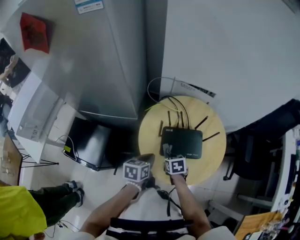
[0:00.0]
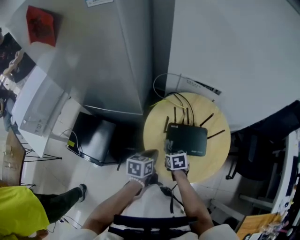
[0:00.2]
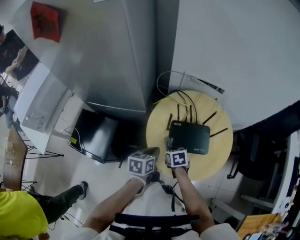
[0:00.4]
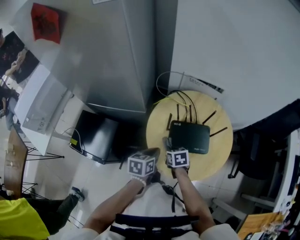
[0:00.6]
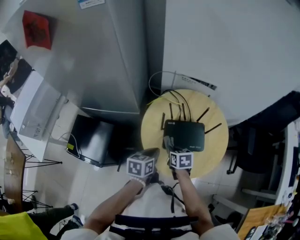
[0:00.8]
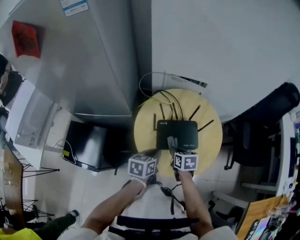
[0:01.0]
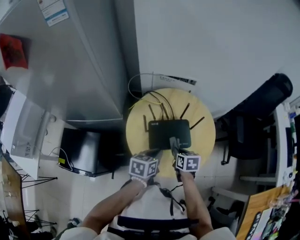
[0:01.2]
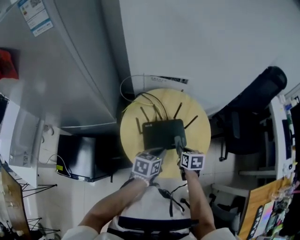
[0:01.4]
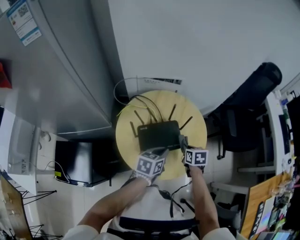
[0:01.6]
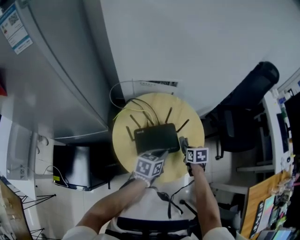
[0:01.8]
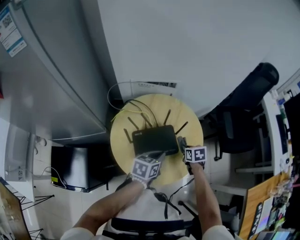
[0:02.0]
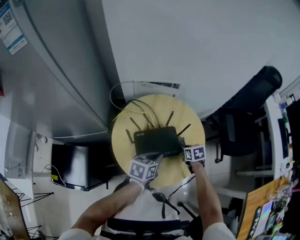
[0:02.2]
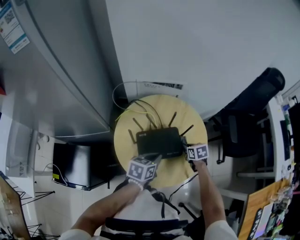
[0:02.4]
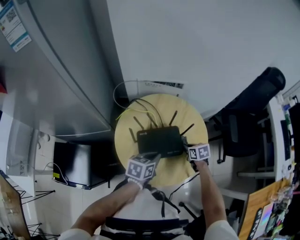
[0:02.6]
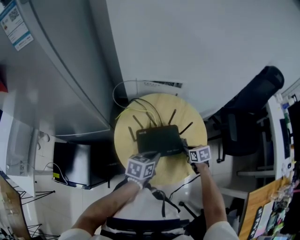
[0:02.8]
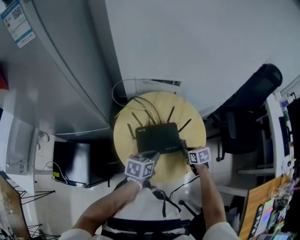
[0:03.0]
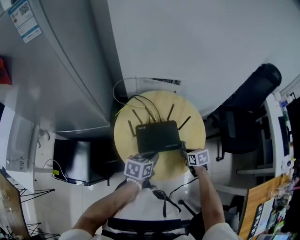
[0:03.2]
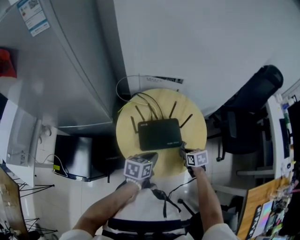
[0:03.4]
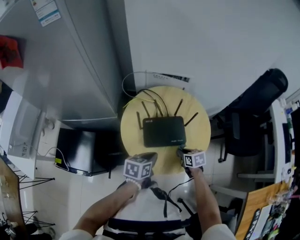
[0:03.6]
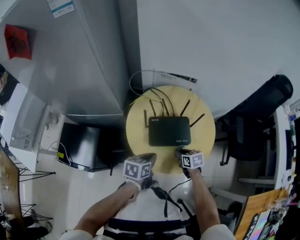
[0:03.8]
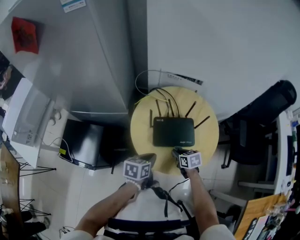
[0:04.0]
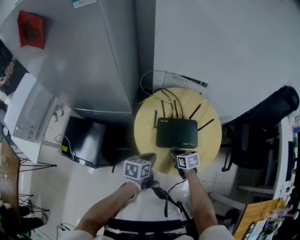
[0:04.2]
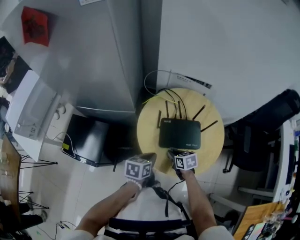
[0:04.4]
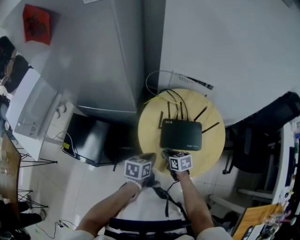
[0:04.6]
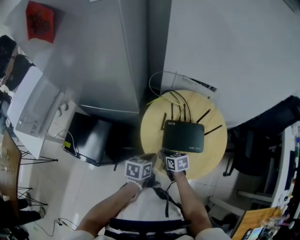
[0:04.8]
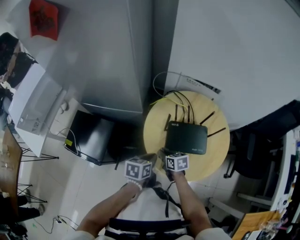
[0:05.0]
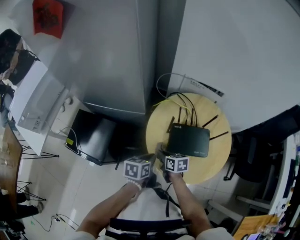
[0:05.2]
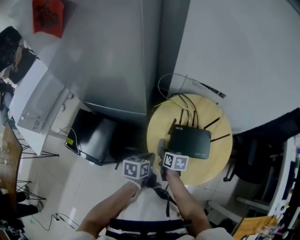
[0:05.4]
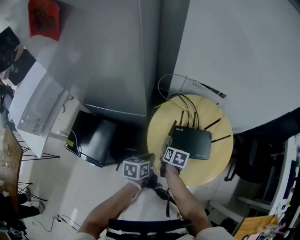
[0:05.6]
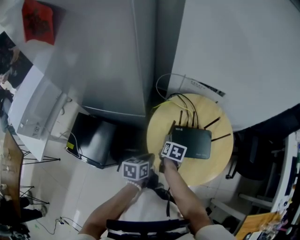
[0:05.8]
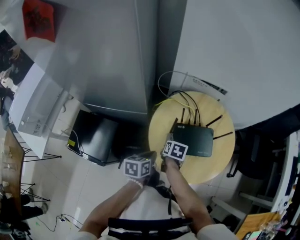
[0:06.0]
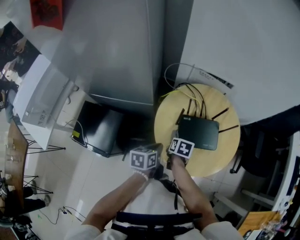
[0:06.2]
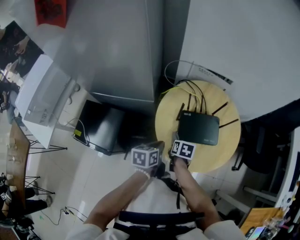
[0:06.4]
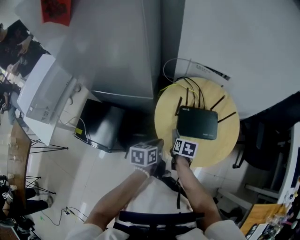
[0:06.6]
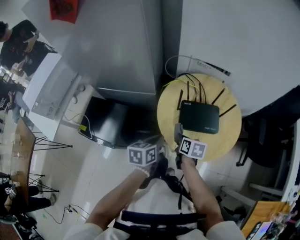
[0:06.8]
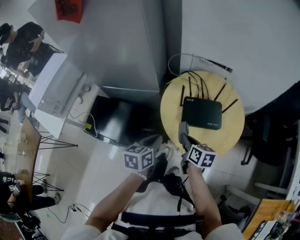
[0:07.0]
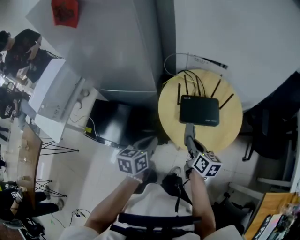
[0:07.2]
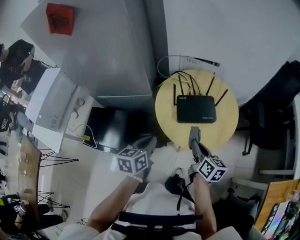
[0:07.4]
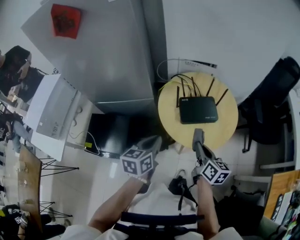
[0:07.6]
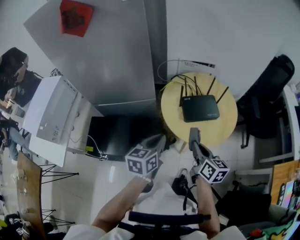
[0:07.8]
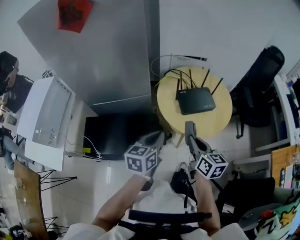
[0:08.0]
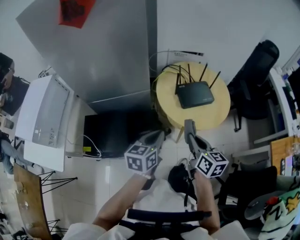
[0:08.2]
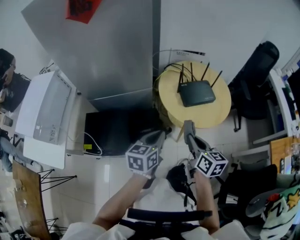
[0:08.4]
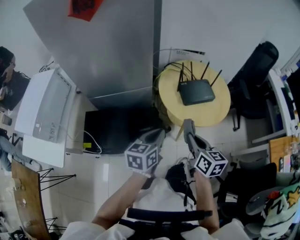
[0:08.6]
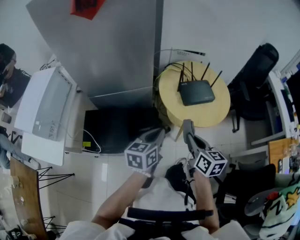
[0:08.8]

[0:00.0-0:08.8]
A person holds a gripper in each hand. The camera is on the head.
0:00.0 to 0:01.4: The left gripper shifts by roughly 15 cm, and turns by approximately 20 degrees. Meanwhile the right gripper ends up about 15 cm from where it was, and changes its angle by approximately 20 degrees.
0:01.4 to 0:03.0: The right gripper heads downward and to the right, covering some 10 cm.
0:03.0 to 0:04.4: The right gripper travels to the left by some 20 cm; the left gripper shifts approximately 15 cm to the left and backward.
0:04.4 to 0:05.8: The right gripper heads forward and to the left, covering approximately 10 cm, and swivels about 30 degrees. Meanwhile the left gripper is displaced to the left by some 5 cm.
0:05.8 to 0:07.4: The right gripper travels backward, upward and to the right by about 25 cm, and angles its fingers upward, by some 40 degrees. The left gripper goes some 15 cm upward and backward.
0:07.4 to 0:08.8: The left gripper travels backward and to the left by some 15 cm, while the right gripper is displaced to the left, backward and upward by some 20 cm.

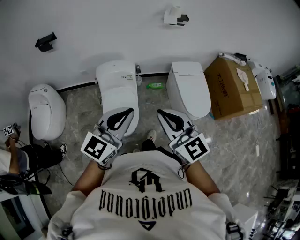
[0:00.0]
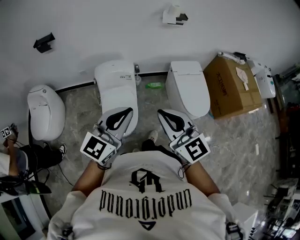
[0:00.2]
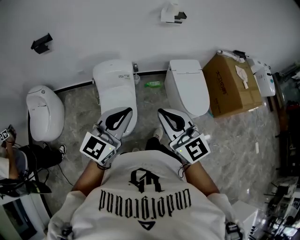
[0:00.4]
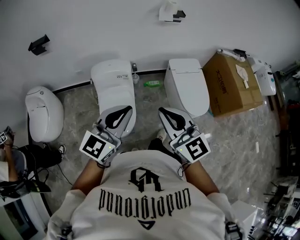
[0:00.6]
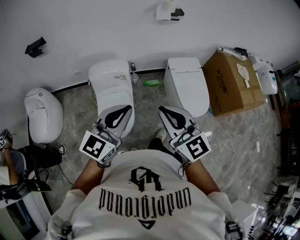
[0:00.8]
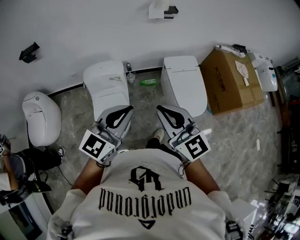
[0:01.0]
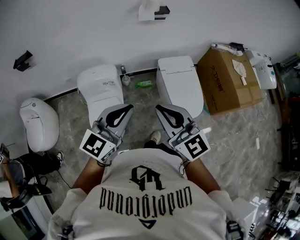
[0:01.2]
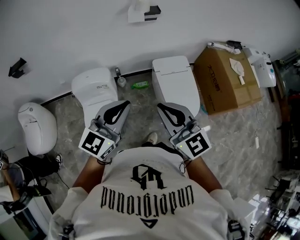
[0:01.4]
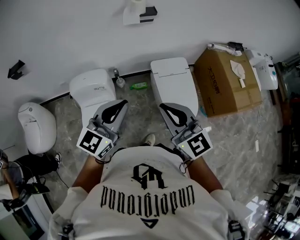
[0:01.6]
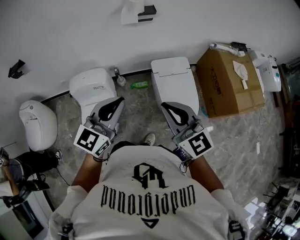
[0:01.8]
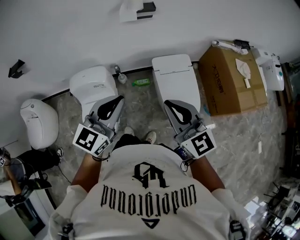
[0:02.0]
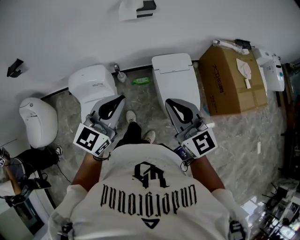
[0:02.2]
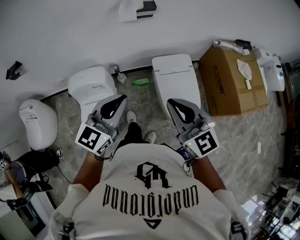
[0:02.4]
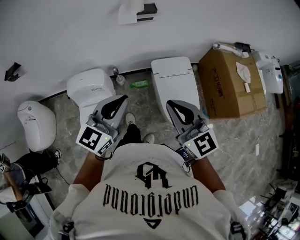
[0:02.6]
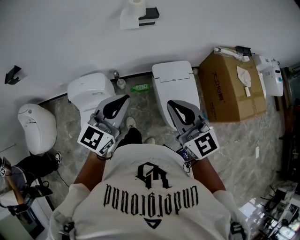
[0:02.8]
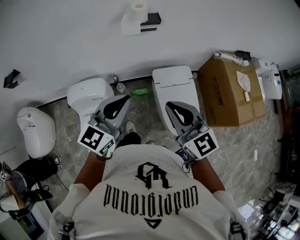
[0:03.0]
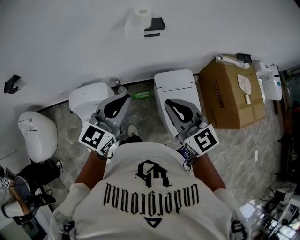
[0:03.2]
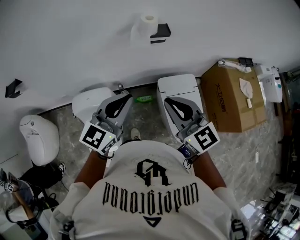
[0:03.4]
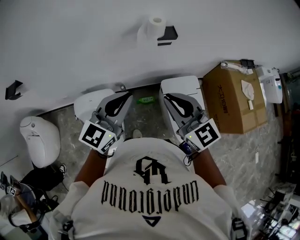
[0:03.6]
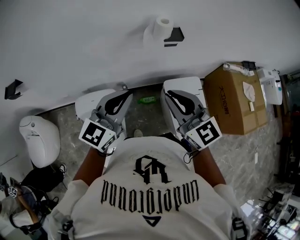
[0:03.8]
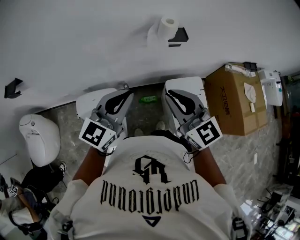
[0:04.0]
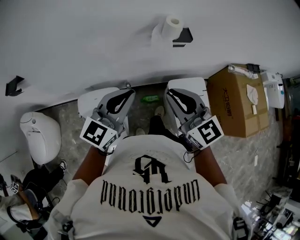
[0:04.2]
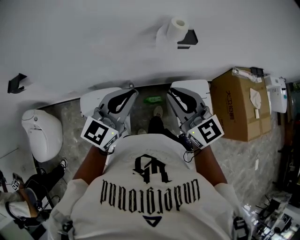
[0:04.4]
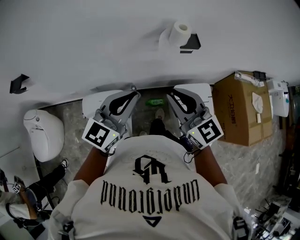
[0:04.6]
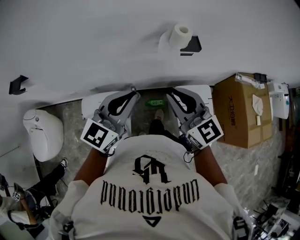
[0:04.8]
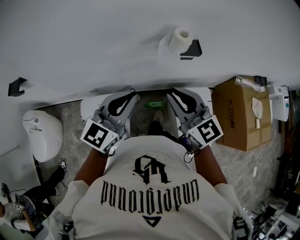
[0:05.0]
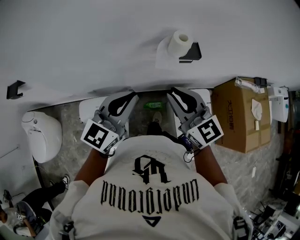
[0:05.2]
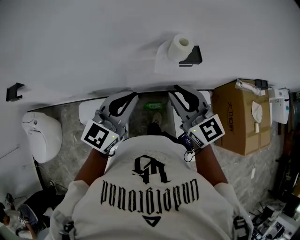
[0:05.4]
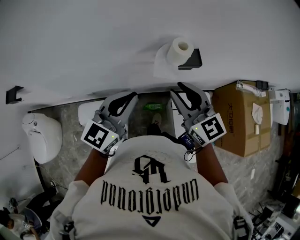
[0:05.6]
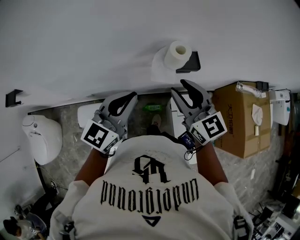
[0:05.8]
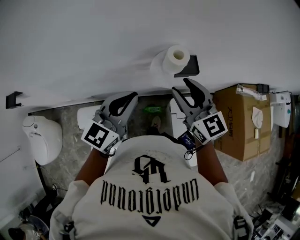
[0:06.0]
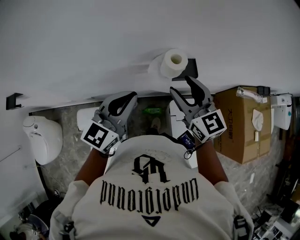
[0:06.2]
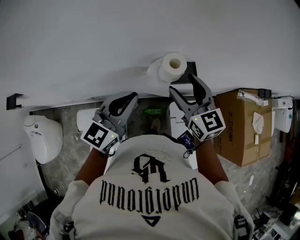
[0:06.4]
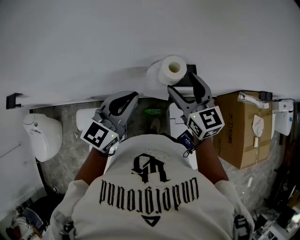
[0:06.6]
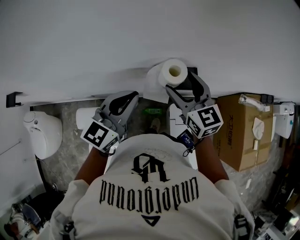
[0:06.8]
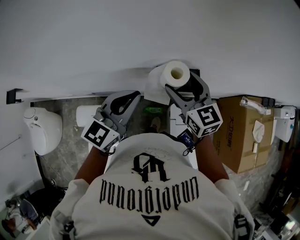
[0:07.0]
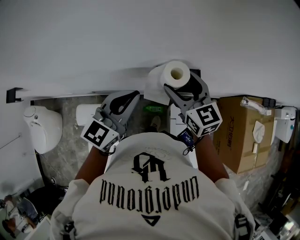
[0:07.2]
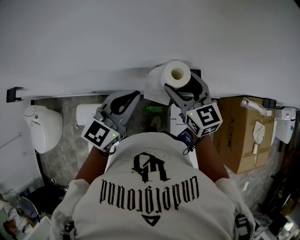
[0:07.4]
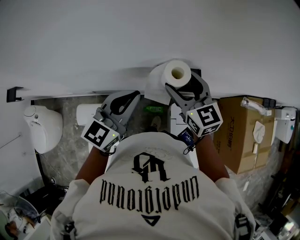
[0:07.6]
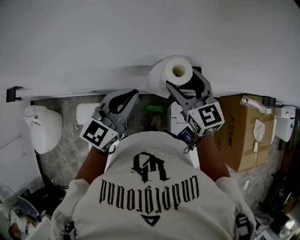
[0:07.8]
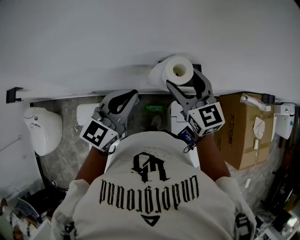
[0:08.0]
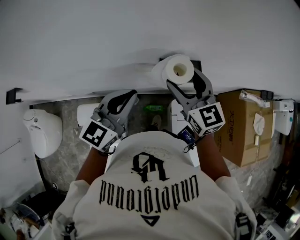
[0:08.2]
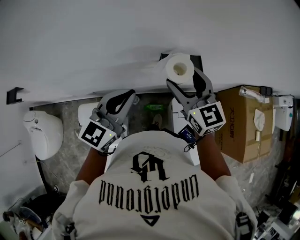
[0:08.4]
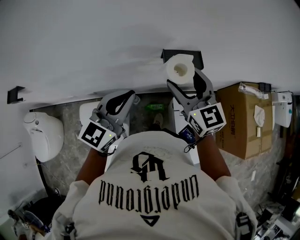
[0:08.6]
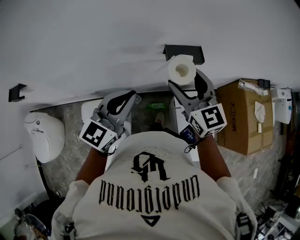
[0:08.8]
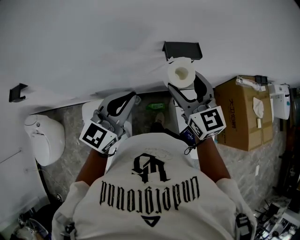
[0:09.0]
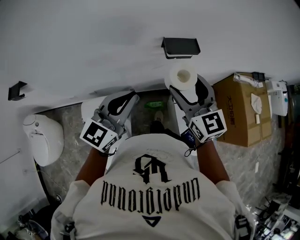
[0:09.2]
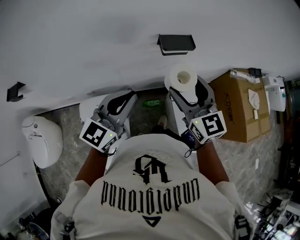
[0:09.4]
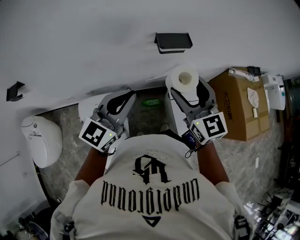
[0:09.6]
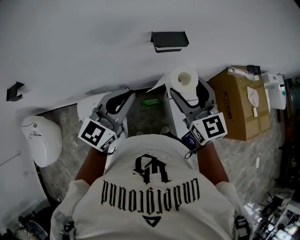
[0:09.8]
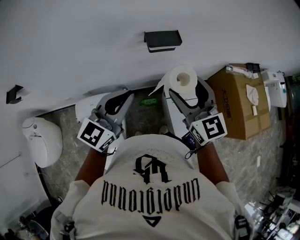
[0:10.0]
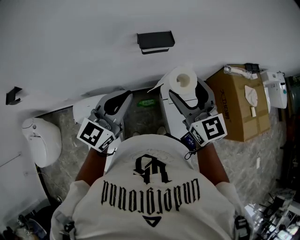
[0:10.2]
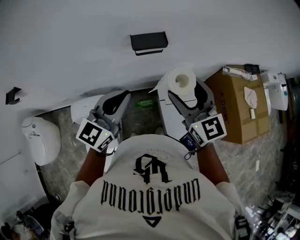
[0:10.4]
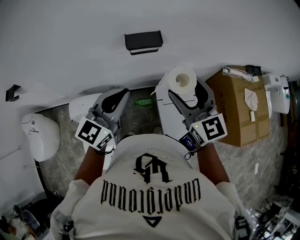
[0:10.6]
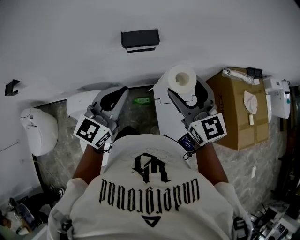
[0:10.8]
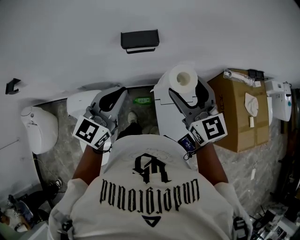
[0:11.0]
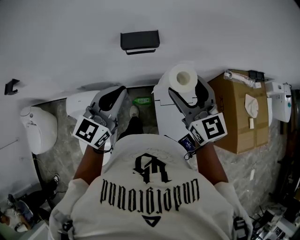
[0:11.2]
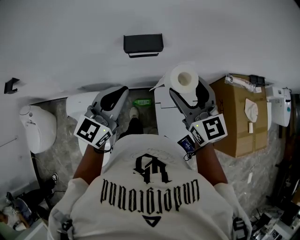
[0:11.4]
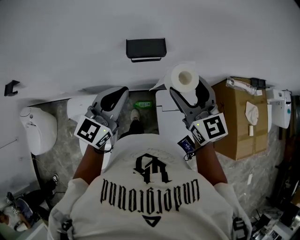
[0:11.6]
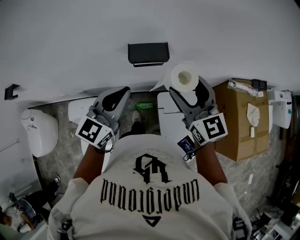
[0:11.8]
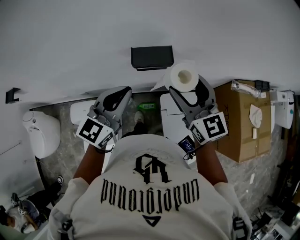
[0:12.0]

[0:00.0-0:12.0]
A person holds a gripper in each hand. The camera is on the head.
0:00.0 to 0:01.6: Both grippers travel together to the right and forward, approximately 30 cm.
0:01.6 to 0:03.0: The two grippers go roughly 15 cm forward.
0:03.0 to 0:04.4: The two grippers go some 20 cm forward and to the left.
0:04.4 to 0:06.0: The two grippers go some 20 cm forward. The right gripper opens.
0:06.0 to 0:07.6: The two grippers go roughly 10 cm forward. The right gripper opens up.
0:07.6 to 0:09.0: The right gripper is displaced backward by roughly 20 cm. Meanwhile the left gripper moves backward and to the left, about 20 cm.
0:09.0 to 0:10.4: Both grippers move to the right, approximately 15 cm.
0:10.4 to 0:12.0: Both grippers travel together forward, approximately 15 cm.

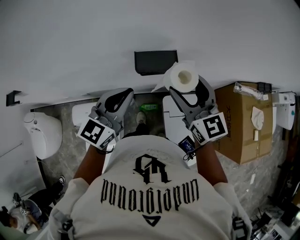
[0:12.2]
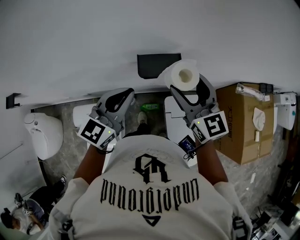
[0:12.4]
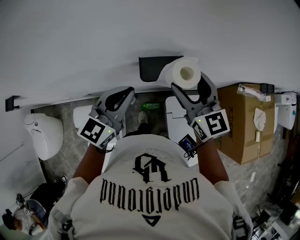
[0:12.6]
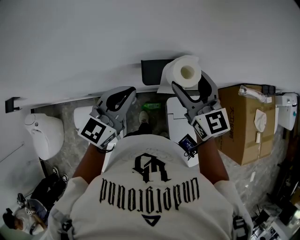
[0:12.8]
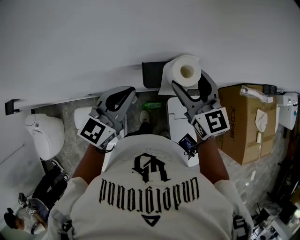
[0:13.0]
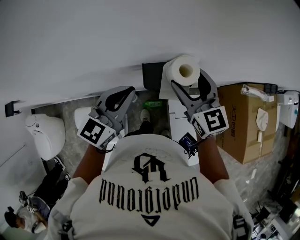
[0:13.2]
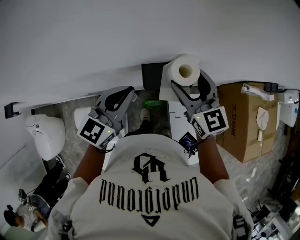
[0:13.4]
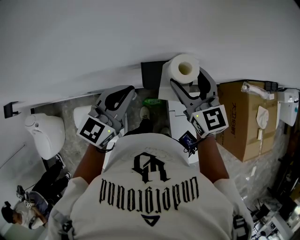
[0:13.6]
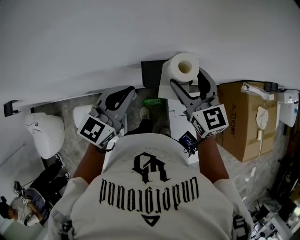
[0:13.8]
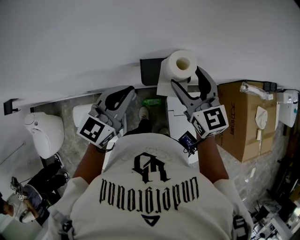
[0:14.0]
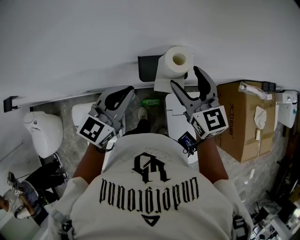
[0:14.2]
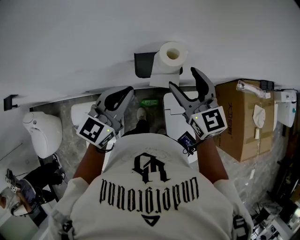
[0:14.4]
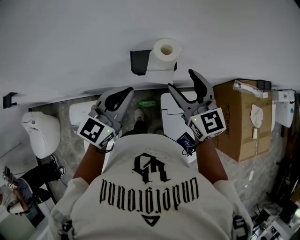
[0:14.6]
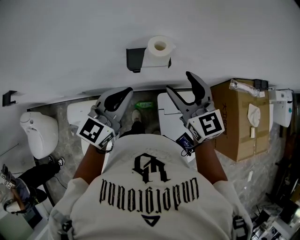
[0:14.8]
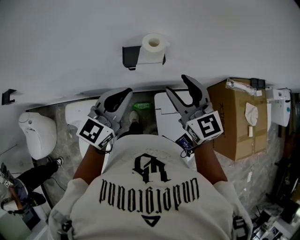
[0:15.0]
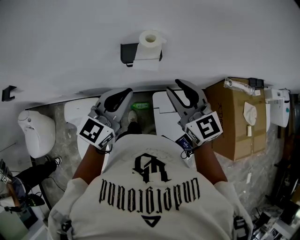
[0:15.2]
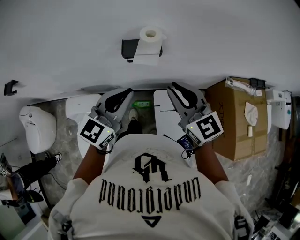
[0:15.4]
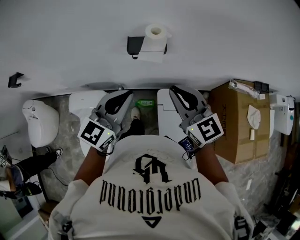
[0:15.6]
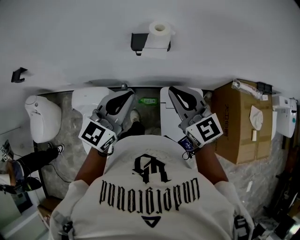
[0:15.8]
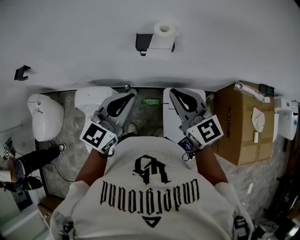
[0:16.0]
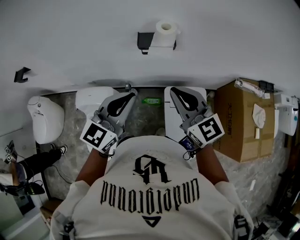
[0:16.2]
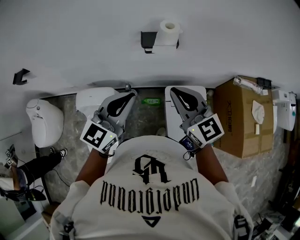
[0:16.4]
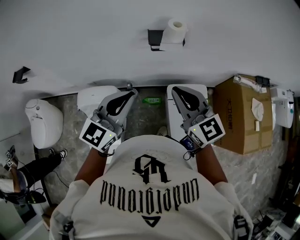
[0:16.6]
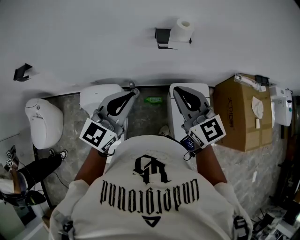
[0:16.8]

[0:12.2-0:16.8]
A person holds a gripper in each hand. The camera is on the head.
0:12.2 to 0:13.8: The right gripper moves forward and downward, some 10 cm. Meanwhile the left gripper goes some 10 cm forward.
0:13.8 to 0:15.2: Both grippers travel together backward and to the right, some 15 cm. The right gripper closes up.
0:15.2 to 0:16.8: Both grippers move to the left and backward, approximately 20 cm. The right gripper closes its fingers.
